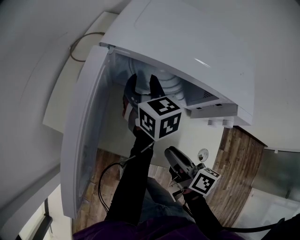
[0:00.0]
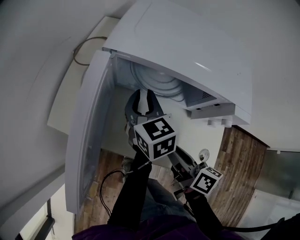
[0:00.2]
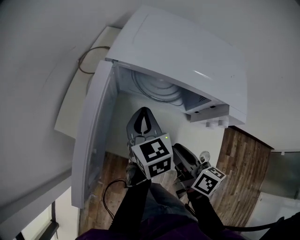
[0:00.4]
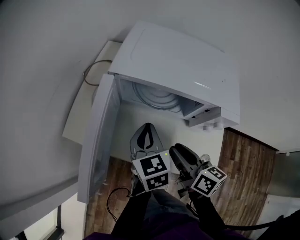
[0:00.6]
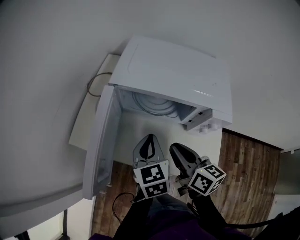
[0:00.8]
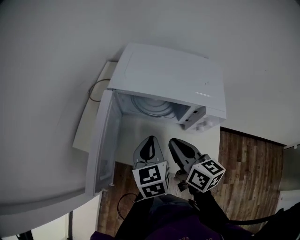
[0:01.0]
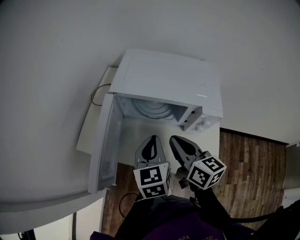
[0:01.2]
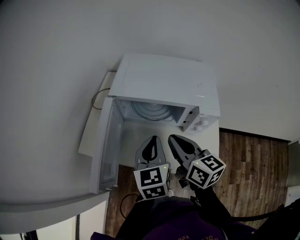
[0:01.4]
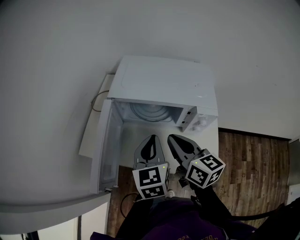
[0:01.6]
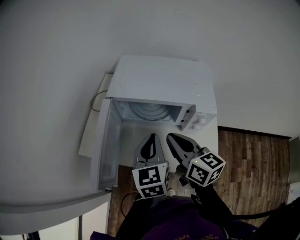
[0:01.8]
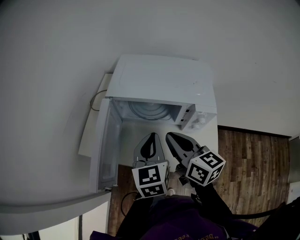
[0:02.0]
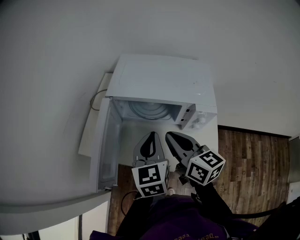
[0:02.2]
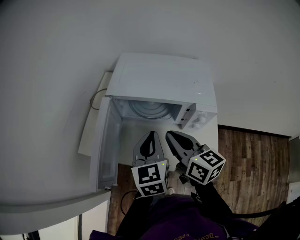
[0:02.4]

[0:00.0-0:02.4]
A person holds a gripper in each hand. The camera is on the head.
0:00.0 to 0:01.2: The left gripper moves backward and upward, some 20 cm, rotates approximately 20 degrees, and closes up. The right gripper shifts some 15 cm upward, rotates some 30 degrees, and closes up.
0:01.2 to 0:02.4: The grippers make only small movements.

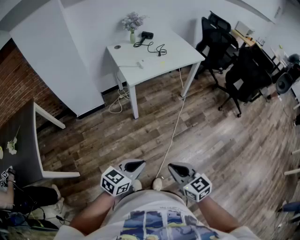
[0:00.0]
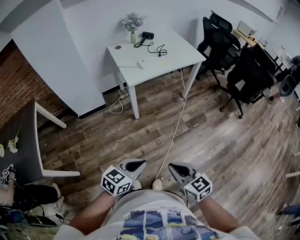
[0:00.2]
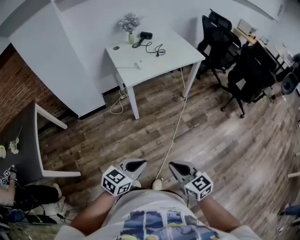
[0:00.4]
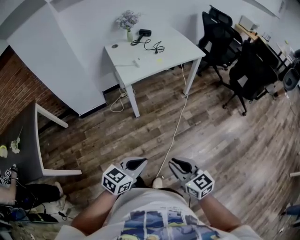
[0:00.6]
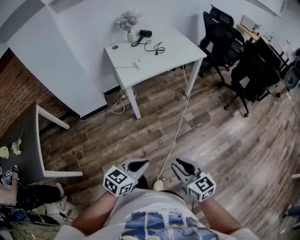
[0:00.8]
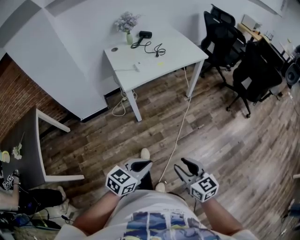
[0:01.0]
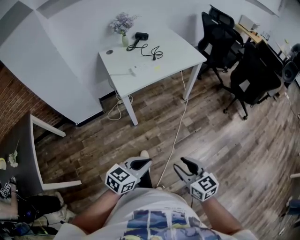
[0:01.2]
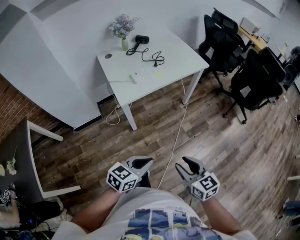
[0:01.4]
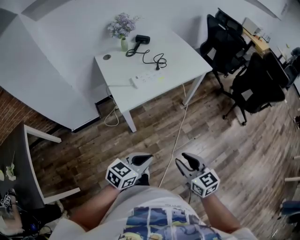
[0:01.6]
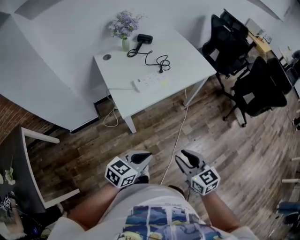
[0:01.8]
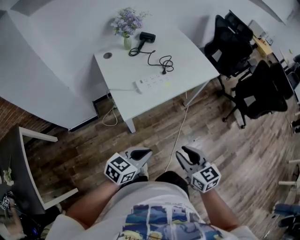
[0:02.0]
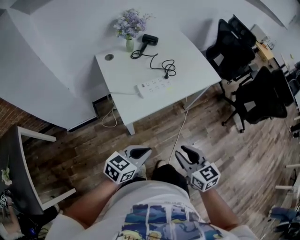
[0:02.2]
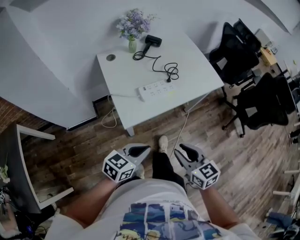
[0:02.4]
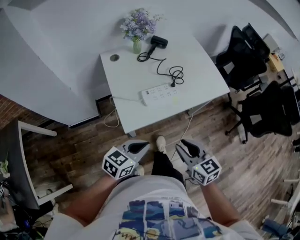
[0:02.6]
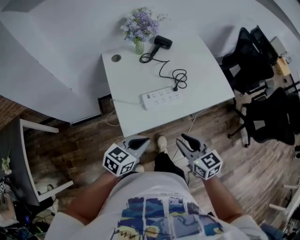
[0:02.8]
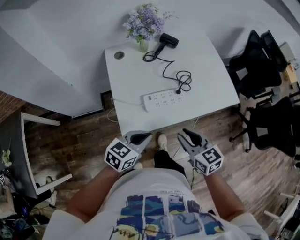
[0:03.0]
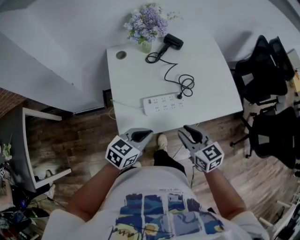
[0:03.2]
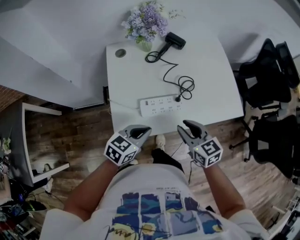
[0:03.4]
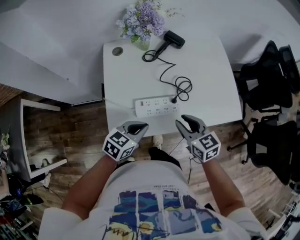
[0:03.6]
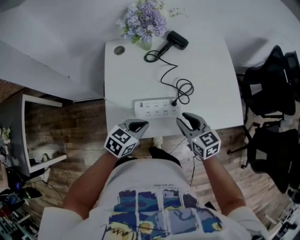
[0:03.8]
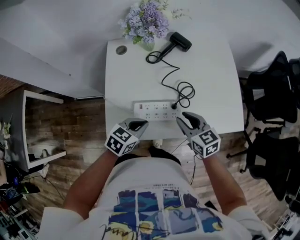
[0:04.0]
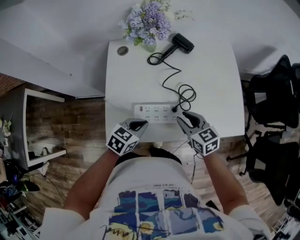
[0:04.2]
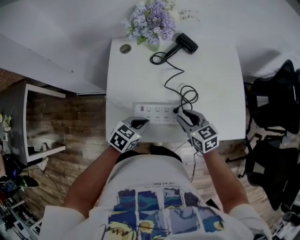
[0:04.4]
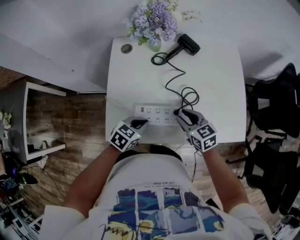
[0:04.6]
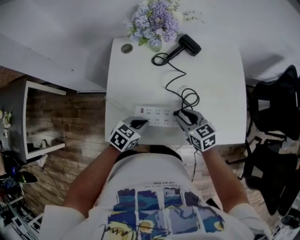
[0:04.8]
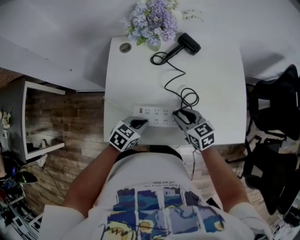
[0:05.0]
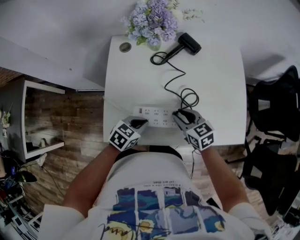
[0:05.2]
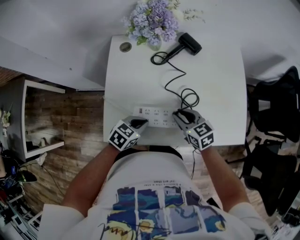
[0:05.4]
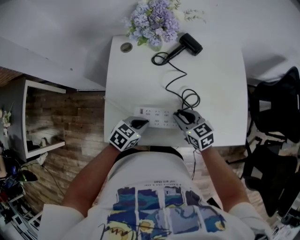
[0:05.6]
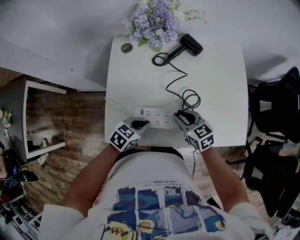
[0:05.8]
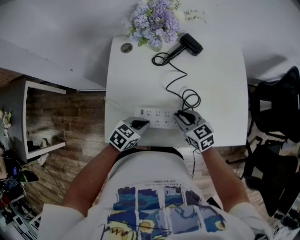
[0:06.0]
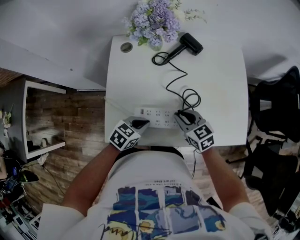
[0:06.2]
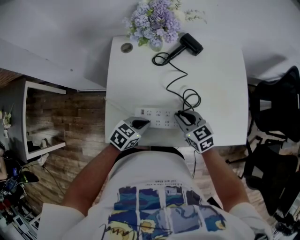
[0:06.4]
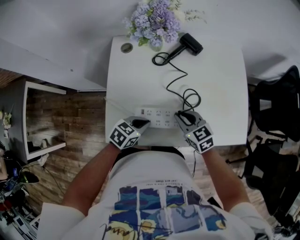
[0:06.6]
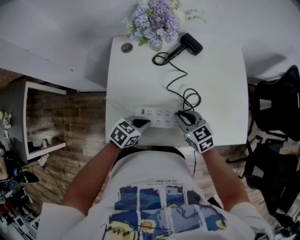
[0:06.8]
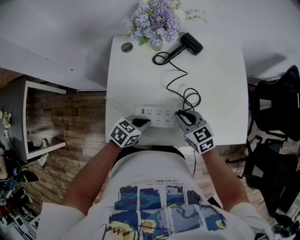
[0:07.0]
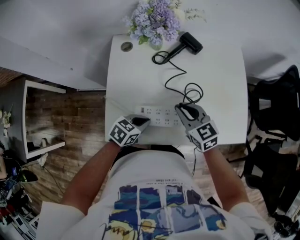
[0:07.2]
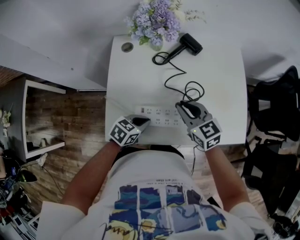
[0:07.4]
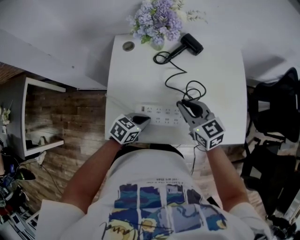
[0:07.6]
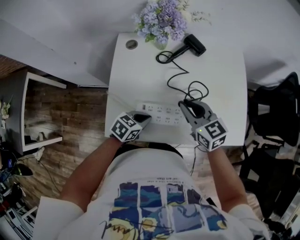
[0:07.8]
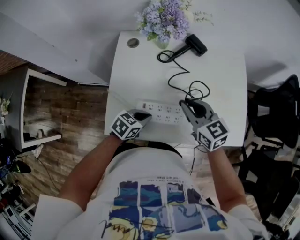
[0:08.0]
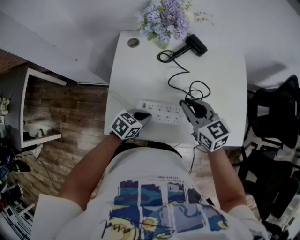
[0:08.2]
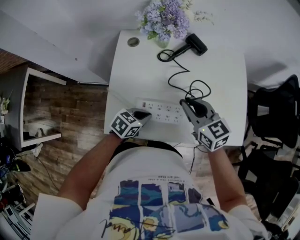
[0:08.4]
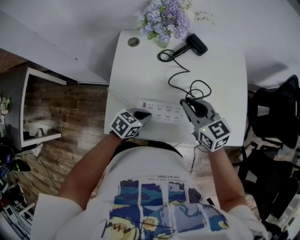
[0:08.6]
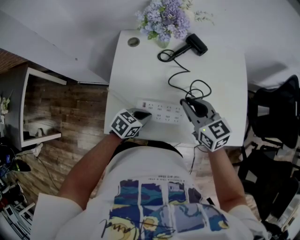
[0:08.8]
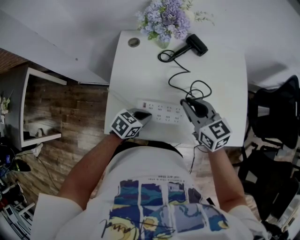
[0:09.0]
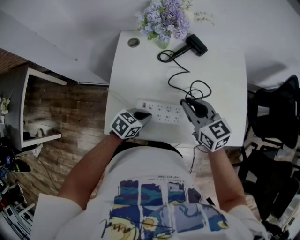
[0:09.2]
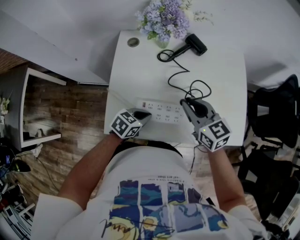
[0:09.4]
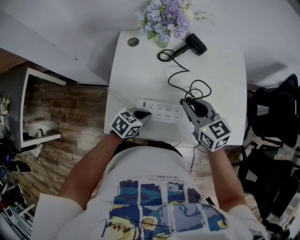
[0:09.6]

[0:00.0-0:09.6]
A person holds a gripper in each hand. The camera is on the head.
0:00.0 to 0:01.6: The two grippers go approximately 30 cm forward. The right gripper opens up.
0:01.6 to 0:03.2: Both grippers travel together forward, some 40 cm. The right gripper swivels roughly 20 degrees.
0:03.2 to 0:04.8: Both grippers travel together forward and downward, about 20 cm.
0:04.8 to 0:06.4: The grippers move only a little.
0:06.4 to 0:08.0: The right gripper shifts some 10 cm upward.
0:08.0 to 0:09.6: Neither gripper changes place.

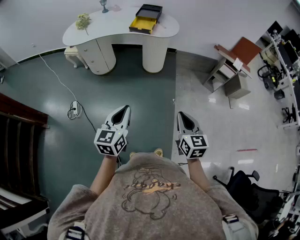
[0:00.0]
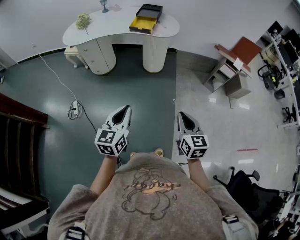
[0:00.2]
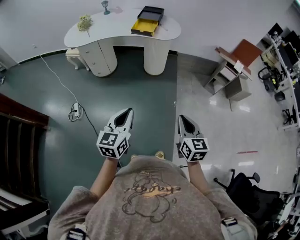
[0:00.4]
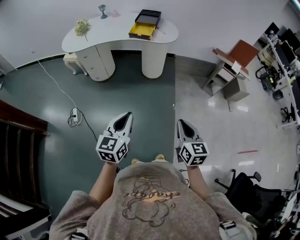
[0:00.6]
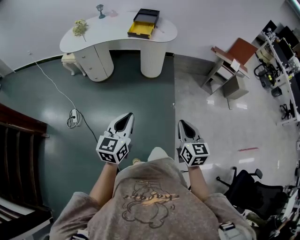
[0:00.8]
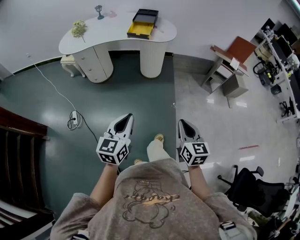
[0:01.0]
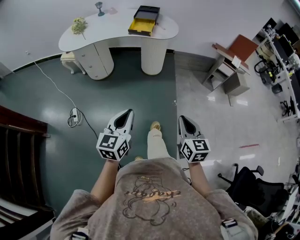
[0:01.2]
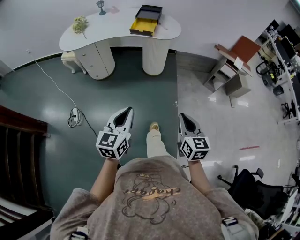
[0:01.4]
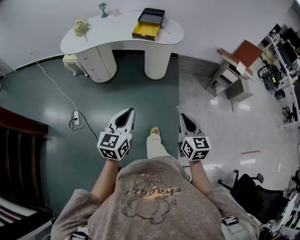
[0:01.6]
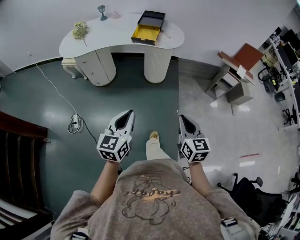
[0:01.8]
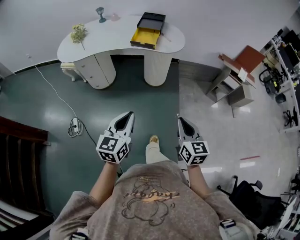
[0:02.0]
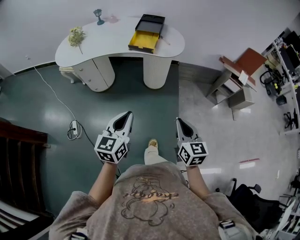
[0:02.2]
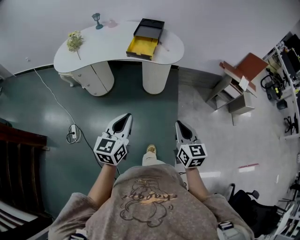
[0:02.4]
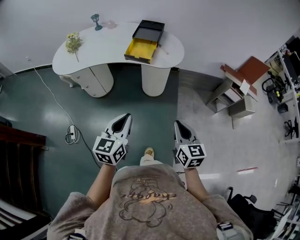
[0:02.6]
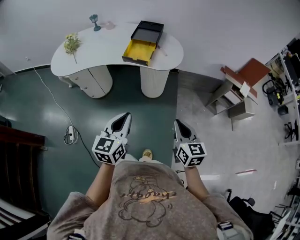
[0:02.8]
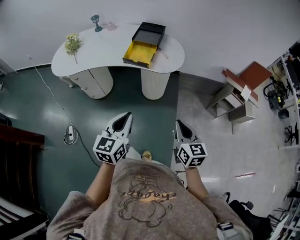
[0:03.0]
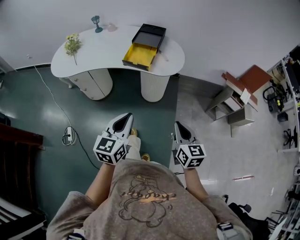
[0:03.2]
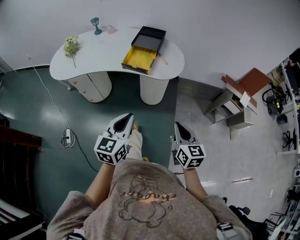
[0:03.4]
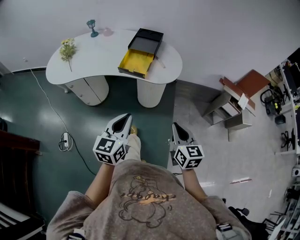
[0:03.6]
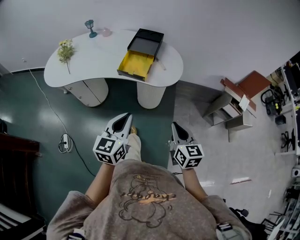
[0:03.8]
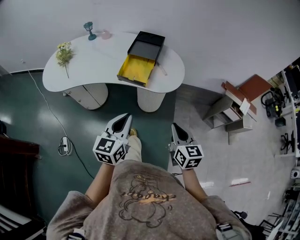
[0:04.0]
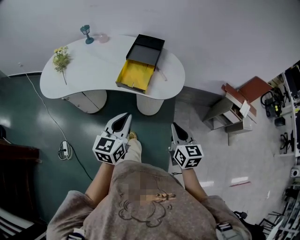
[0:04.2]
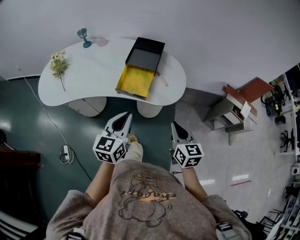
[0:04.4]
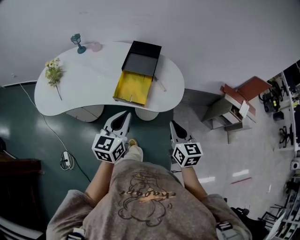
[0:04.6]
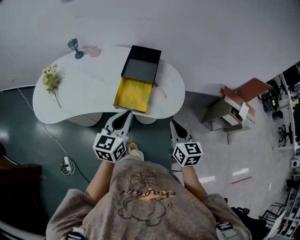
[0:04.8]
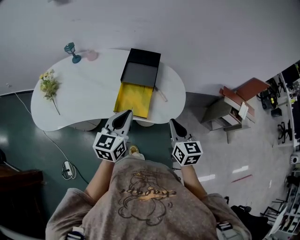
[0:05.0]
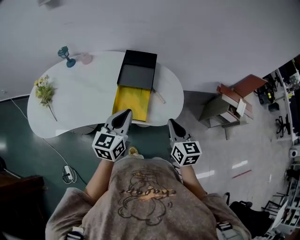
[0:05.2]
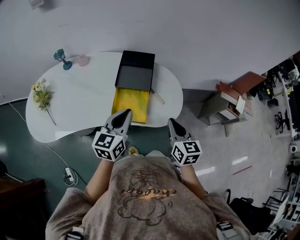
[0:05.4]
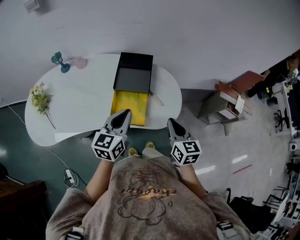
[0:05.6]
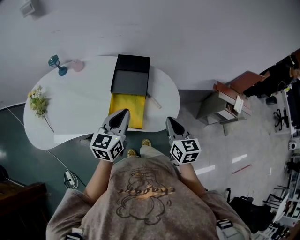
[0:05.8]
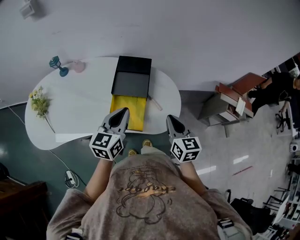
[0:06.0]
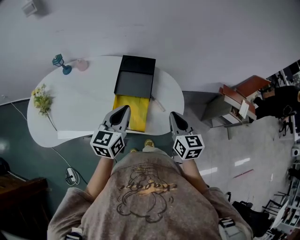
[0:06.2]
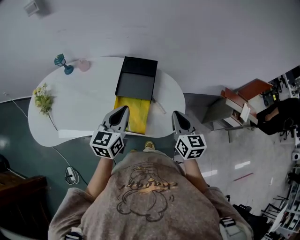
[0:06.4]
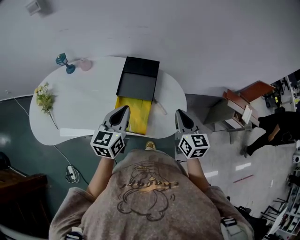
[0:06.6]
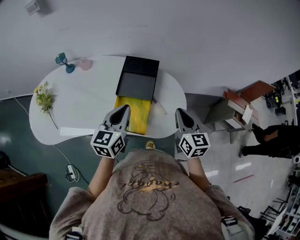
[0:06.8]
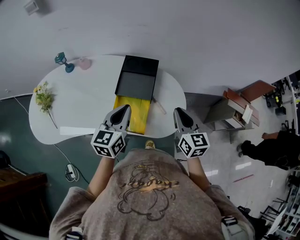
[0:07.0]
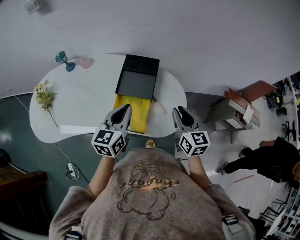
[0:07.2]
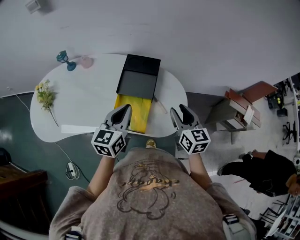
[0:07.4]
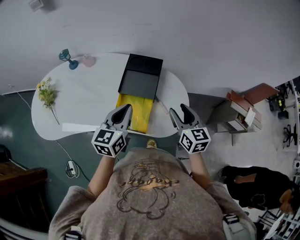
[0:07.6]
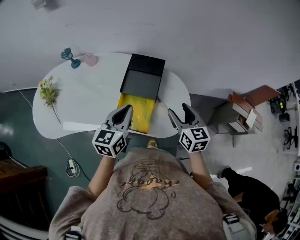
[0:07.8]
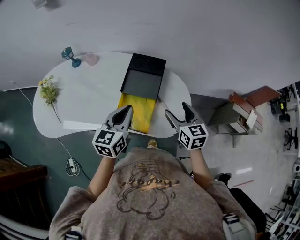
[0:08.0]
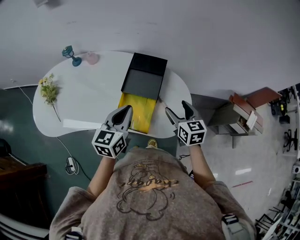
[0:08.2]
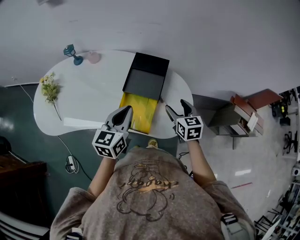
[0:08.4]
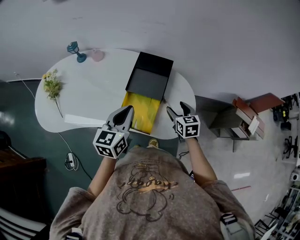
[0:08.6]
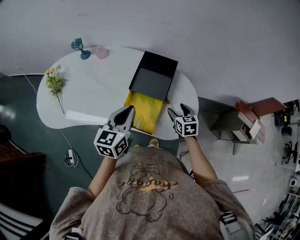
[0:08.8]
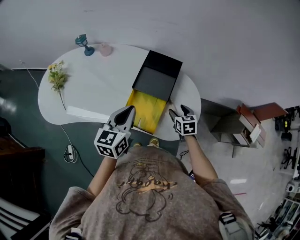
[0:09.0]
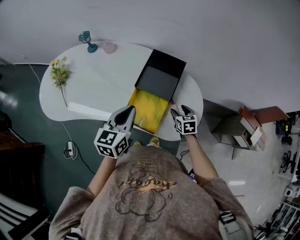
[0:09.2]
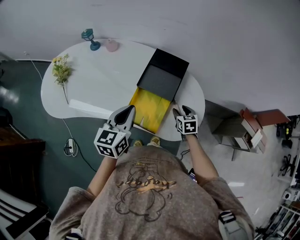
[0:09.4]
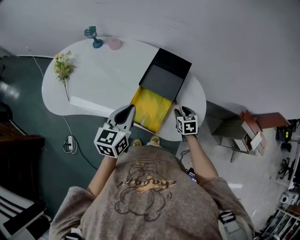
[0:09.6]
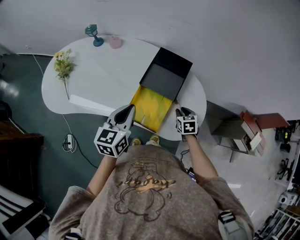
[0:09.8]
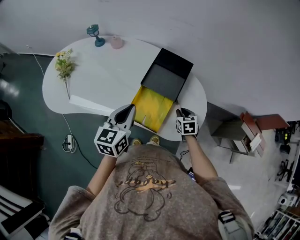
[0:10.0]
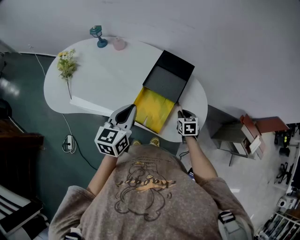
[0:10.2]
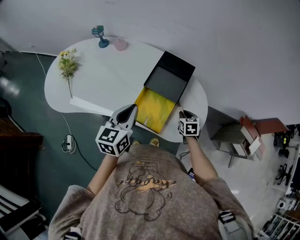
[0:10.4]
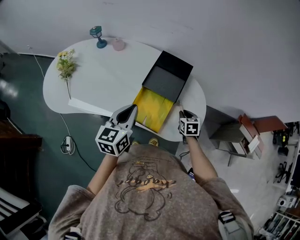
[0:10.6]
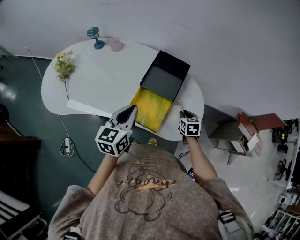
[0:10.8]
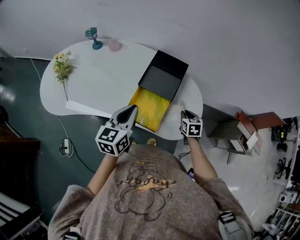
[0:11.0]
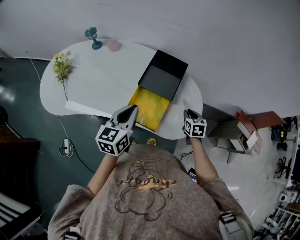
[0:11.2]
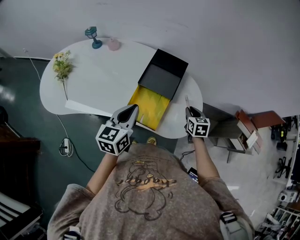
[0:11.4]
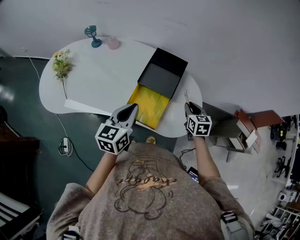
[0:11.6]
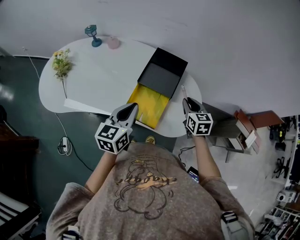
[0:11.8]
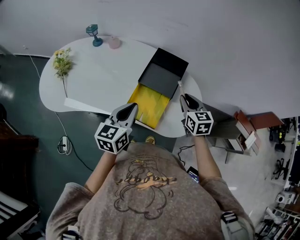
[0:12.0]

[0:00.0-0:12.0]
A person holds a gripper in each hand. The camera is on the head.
0:00.0 to 0:01.6: The right gripper is displaced forward and to the left by about 10 cm. The left gripper goes about 5 cm forward.
0:01.6 to 0:03.0: The two grippers go about 25 cm forward.
0:03.0 to 0:04.4: Both grippers move forward, some 25 cm.
0:04.4 to 0:06.0: Both grippers travel together forward, some 20 cm.
0:06.0 to 0:07.6: The right gripper heads forward, covering about 5 cm, and opens up.
0:07.6 to 0:09.0: The right gripper is displaced downward by roughly 20 cm, and rotates approximately 30 degrees.
0:09.0 to 0:10.4: The right gripper closes.
0:10.4 to 0:12.0: The right gripper moves upward, some 15 cm, and changes its angle by roughly 20 degrees.
